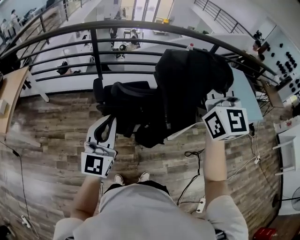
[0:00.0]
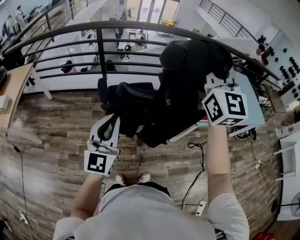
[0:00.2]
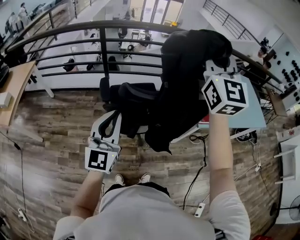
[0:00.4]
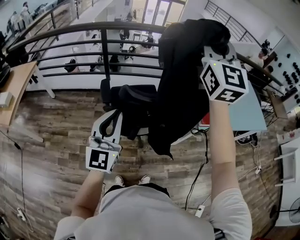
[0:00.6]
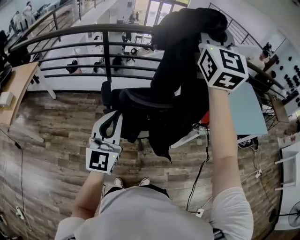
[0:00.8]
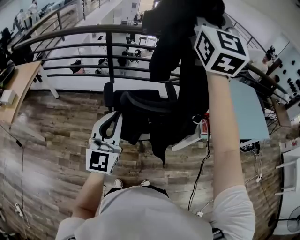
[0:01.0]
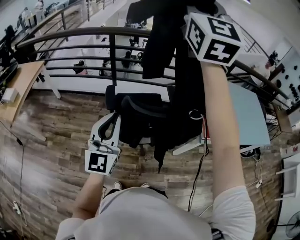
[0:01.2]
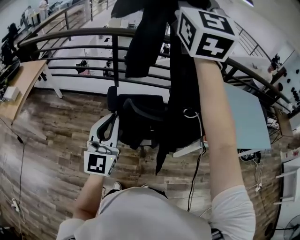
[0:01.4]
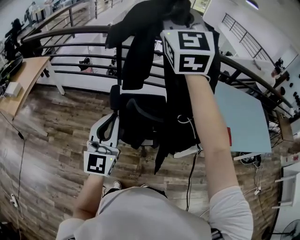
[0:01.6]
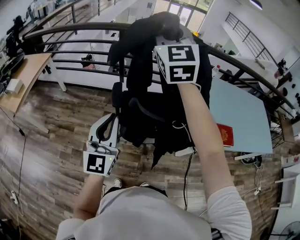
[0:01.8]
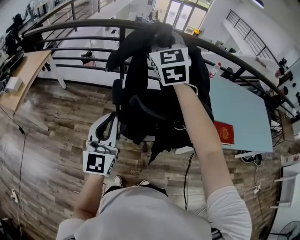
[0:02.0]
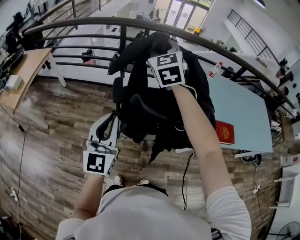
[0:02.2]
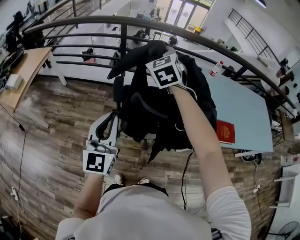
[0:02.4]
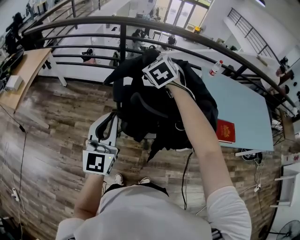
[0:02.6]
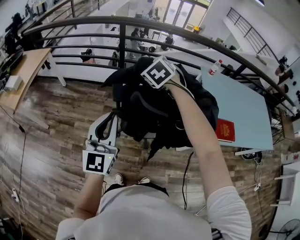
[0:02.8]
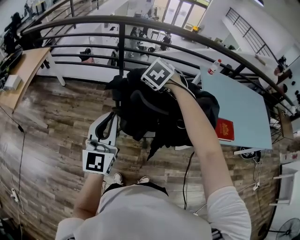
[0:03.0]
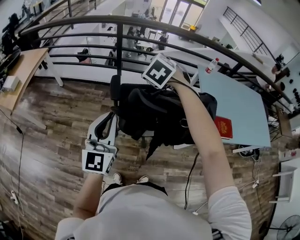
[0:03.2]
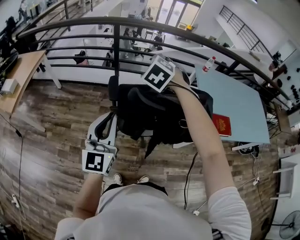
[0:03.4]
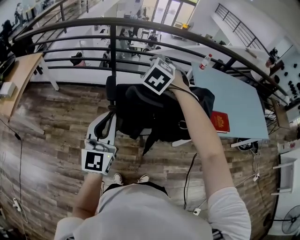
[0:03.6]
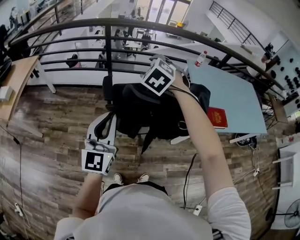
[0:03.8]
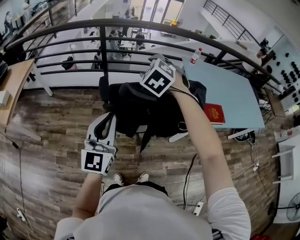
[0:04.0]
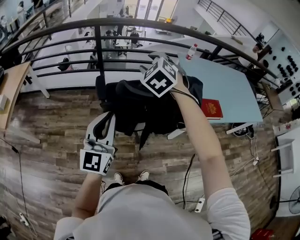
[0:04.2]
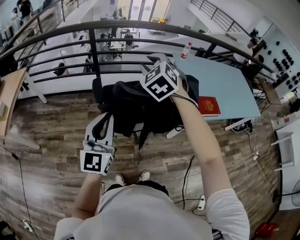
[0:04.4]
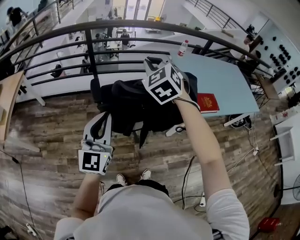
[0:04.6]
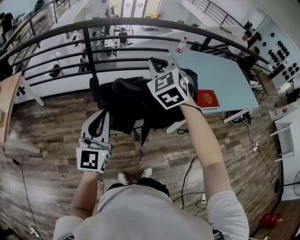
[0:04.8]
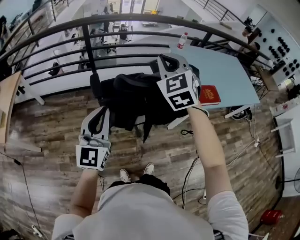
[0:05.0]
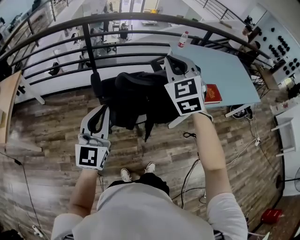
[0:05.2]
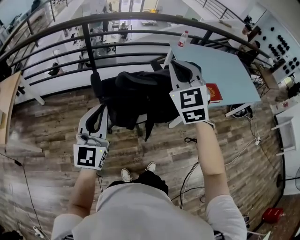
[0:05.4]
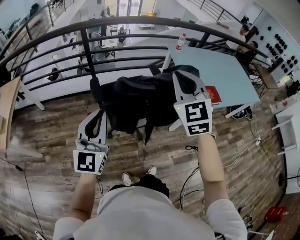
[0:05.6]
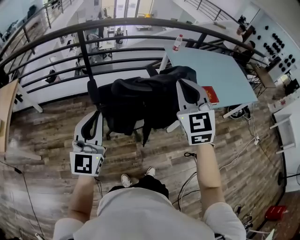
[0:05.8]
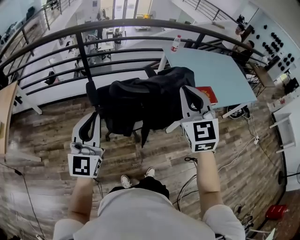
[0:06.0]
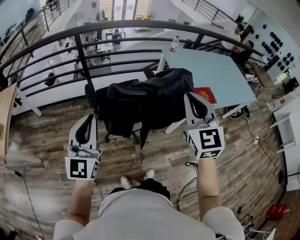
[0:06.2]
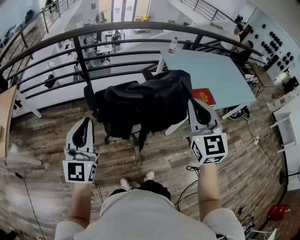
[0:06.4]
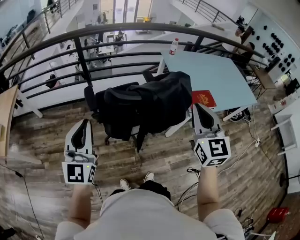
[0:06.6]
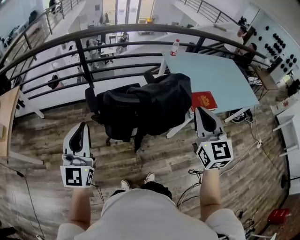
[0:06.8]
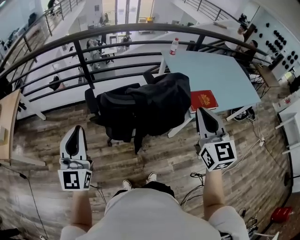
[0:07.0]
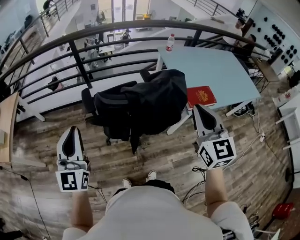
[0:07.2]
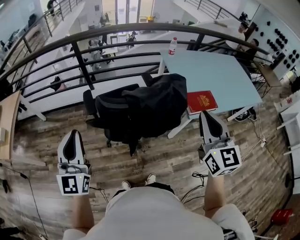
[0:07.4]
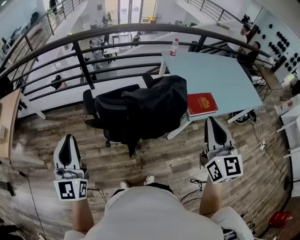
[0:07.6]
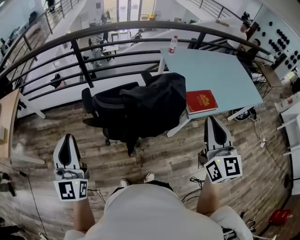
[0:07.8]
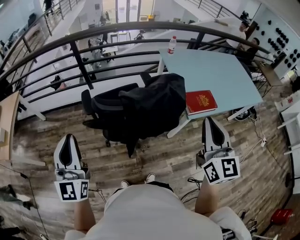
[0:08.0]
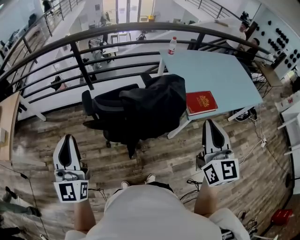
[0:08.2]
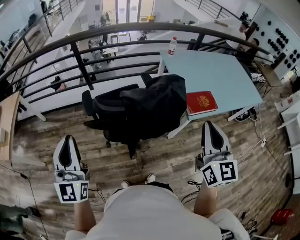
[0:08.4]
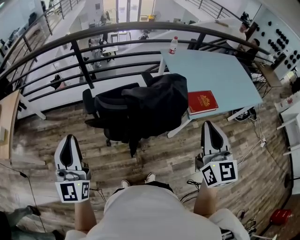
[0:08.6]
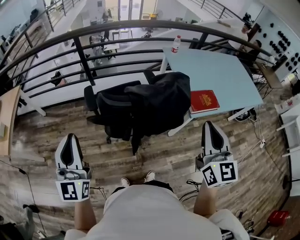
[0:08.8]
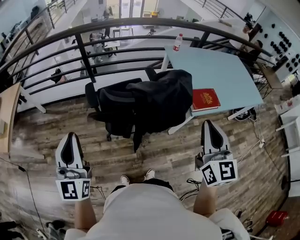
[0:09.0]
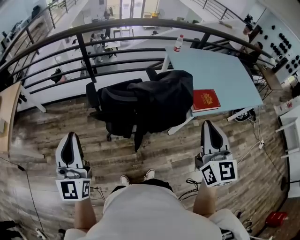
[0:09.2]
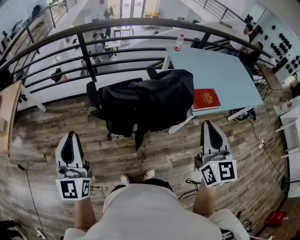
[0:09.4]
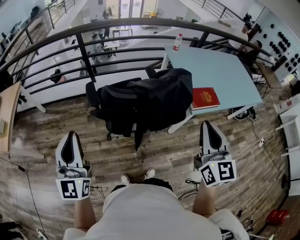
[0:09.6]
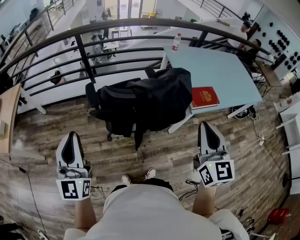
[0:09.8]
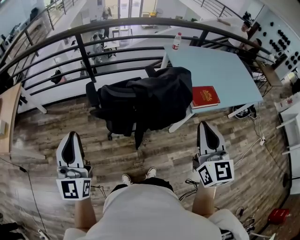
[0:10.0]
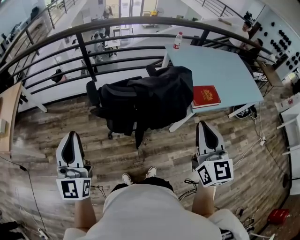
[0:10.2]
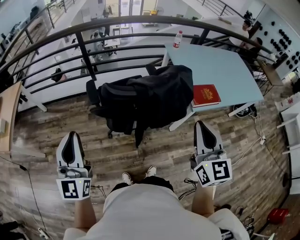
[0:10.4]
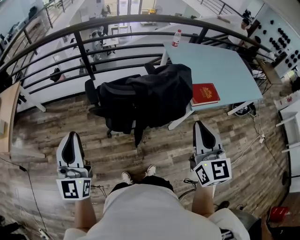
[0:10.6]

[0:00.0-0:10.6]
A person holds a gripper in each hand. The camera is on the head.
0:00.0 to 0:01.6: The left gripper moves some 5 cm. The right gripper moves to the left, forward and upward, roughly 30 cm.
0:01.6 to 0:03.0: The right gripper travels downward by about 35 cm, angles its fingers downward, by about 70 degrees, and opens up.
0:03.0 to 0:04.6: The right gripper heads upward, backward and to the right, covering some 15 cm, swivels approximately 30 degrees, and closes up.
0:04.6 to 0:06.0: The right gripper travels to the right and backward by about 20 cm, and turns by about 30 degrees.
0:06.0 to 0:07.6: The right gripper moves to the right, approximately 15 cm, and turns by about 20 degrees.
0:07.6 to 0:09.0: There are only small adjustments of the grippers.
0:09.0 to 0:10.6: The grippers make only small movements.

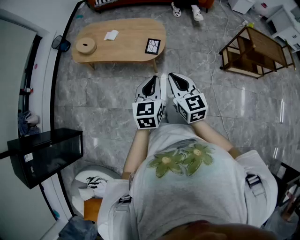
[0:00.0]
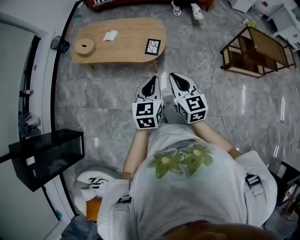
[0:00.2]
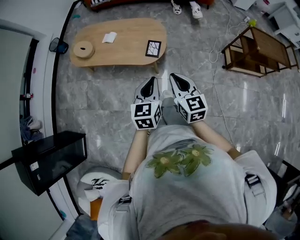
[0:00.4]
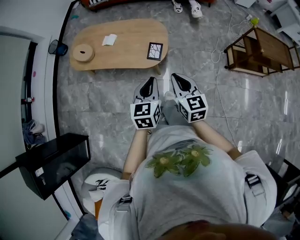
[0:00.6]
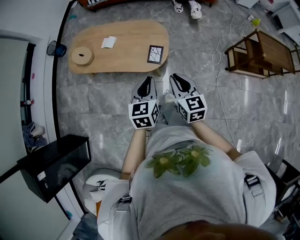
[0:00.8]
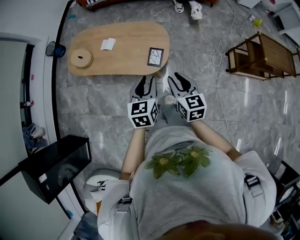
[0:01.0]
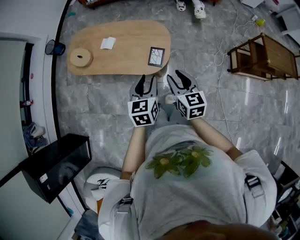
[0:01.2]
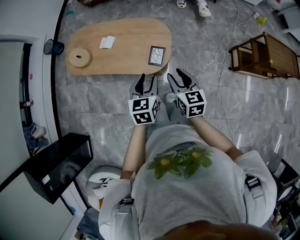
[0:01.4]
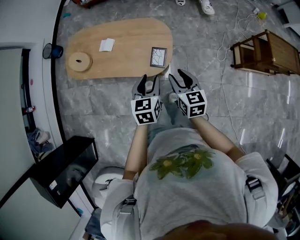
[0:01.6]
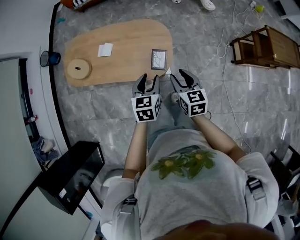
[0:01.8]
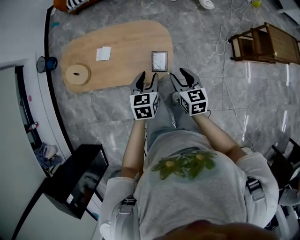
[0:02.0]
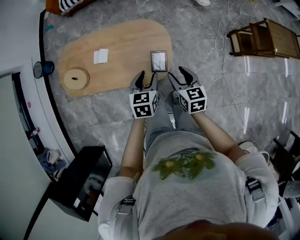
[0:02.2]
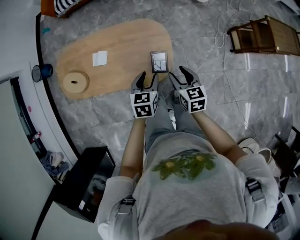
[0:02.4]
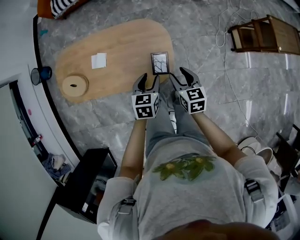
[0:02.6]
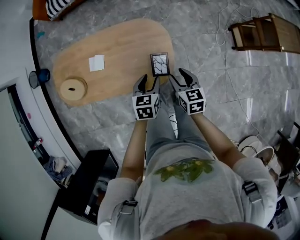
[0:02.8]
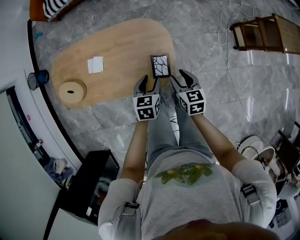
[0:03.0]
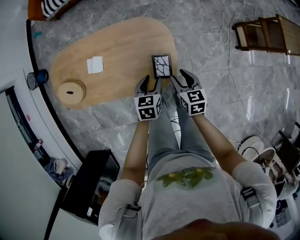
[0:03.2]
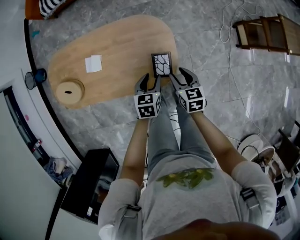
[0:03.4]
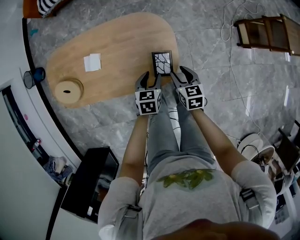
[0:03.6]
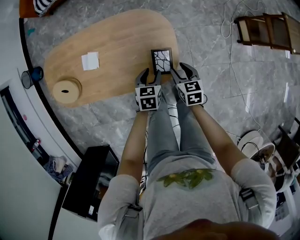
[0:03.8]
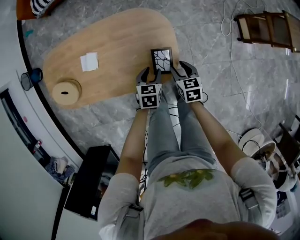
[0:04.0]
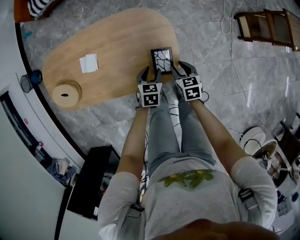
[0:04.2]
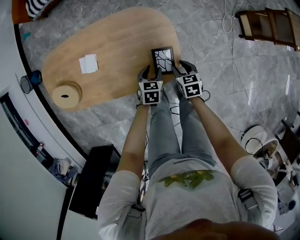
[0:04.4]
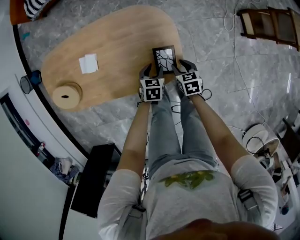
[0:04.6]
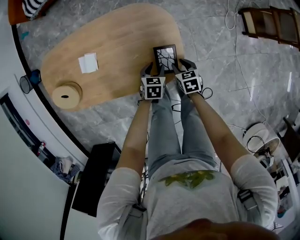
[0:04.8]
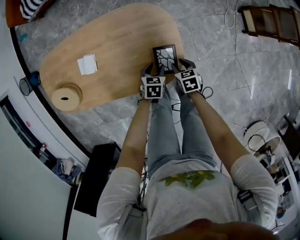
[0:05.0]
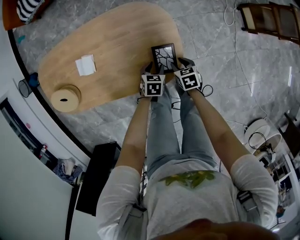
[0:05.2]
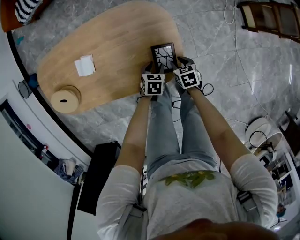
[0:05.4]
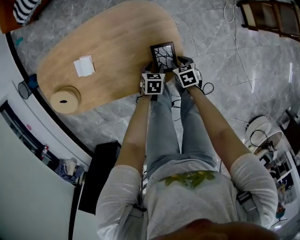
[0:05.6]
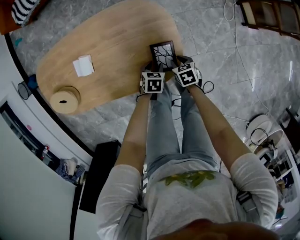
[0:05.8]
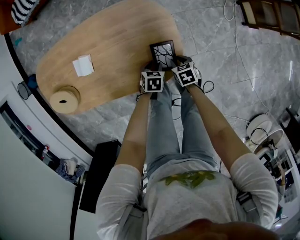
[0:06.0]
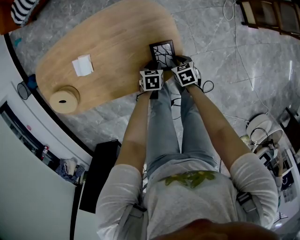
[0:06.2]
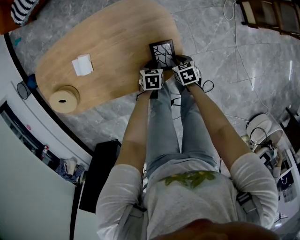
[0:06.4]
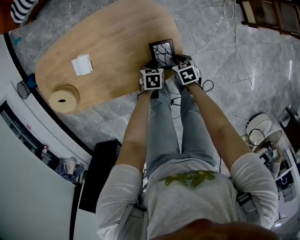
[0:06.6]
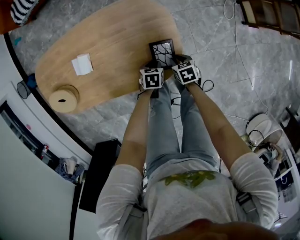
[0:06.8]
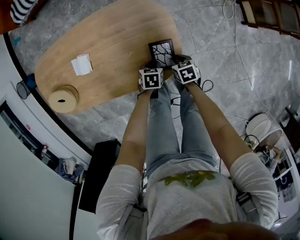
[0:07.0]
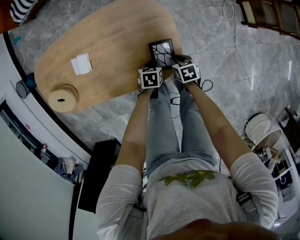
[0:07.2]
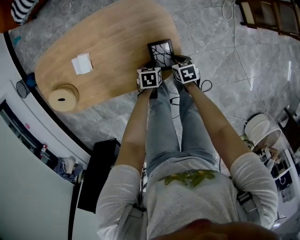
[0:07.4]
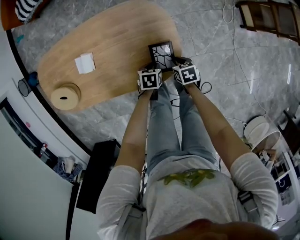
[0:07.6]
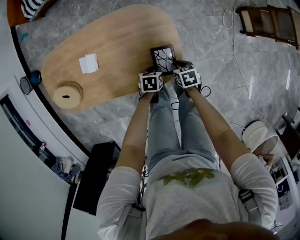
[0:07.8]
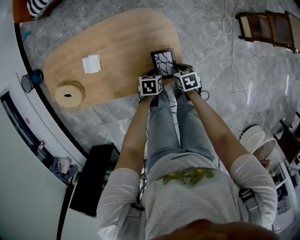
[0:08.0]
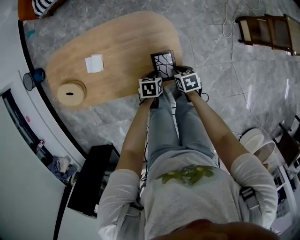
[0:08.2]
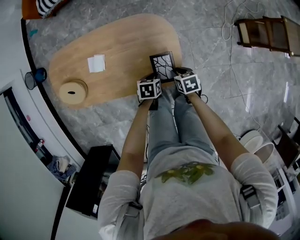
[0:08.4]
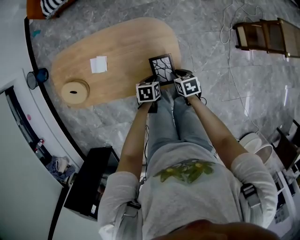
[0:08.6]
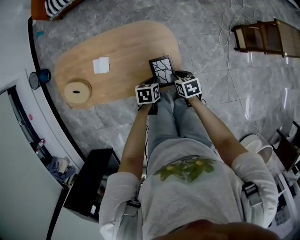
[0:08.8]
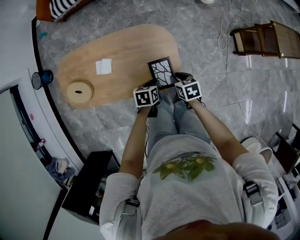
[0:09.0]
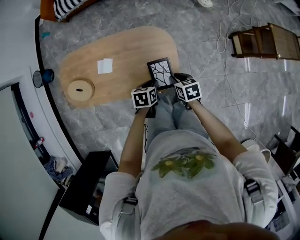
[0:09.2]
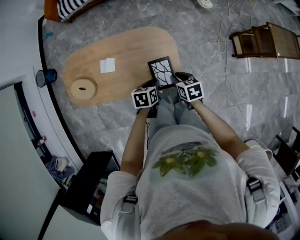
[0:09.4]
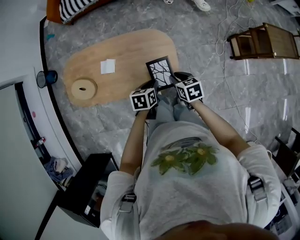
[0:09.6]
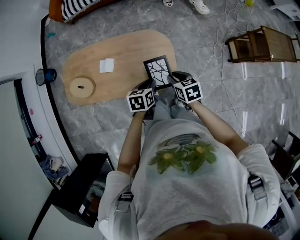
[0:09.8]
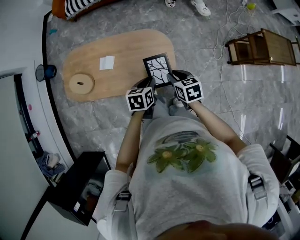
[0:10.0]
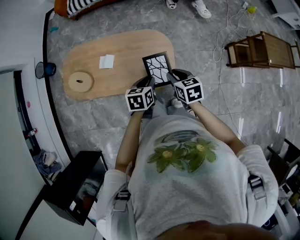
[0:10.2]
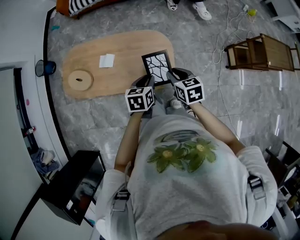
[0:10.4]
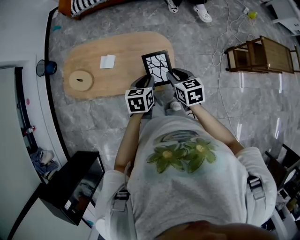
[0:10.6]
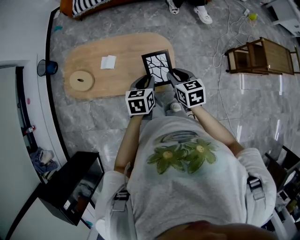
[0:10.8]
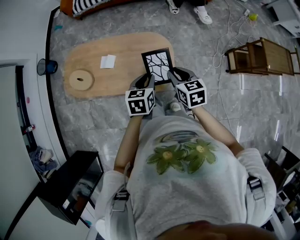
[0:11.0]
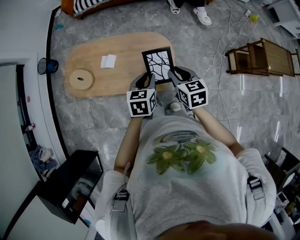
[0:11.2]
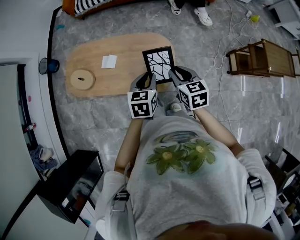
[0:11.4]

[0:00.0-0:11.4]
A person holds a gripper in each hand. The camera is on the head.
0:00.0 to 0:01.4: The right gripper is displaced forward and downward by about 25 cm, and opens up. The left gripper heads forward, covering roughly 25 cm, and opens up.
0:01.4 to 0:02.8: Both grippers travel together downward and forward, approximately 20 cm. The left gripper rotates approximately 20 degrees.
0:02.8 to 0:04.2: The grippers both shift downward by roughly 15 cm.
0:04.2 to 0:05.6: Both grippers move downward, some 10 cm.
0:05.6 to 0:07.2: The left gripper closes.
0:07.2 to 0:08.6: The grippers both shift upward by roughly 15 cm.
0:08.6 to 0:10.0: Both grippers travel together upward, some 20 cm.
0:10.0 to 0:11.4: The two grippers go approximately 10 cm upward.

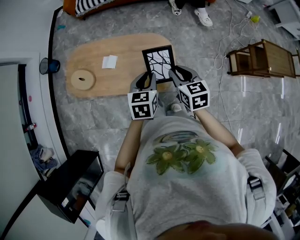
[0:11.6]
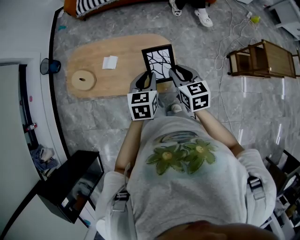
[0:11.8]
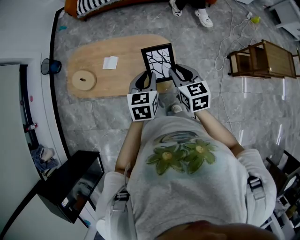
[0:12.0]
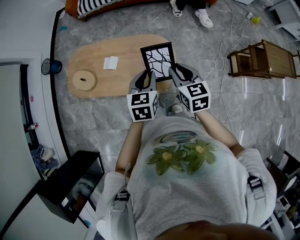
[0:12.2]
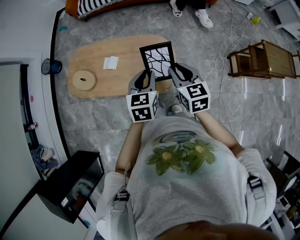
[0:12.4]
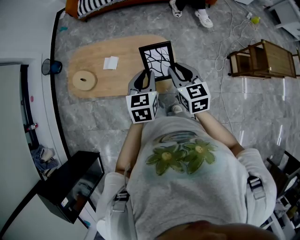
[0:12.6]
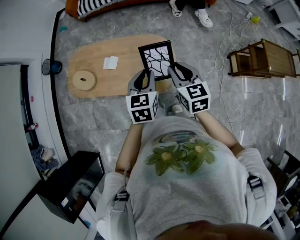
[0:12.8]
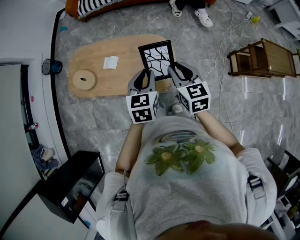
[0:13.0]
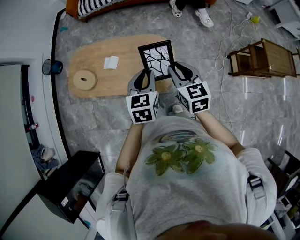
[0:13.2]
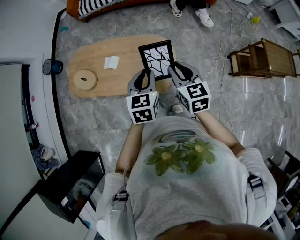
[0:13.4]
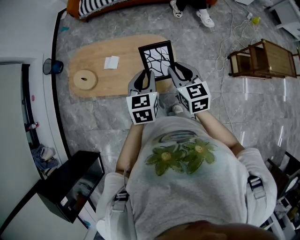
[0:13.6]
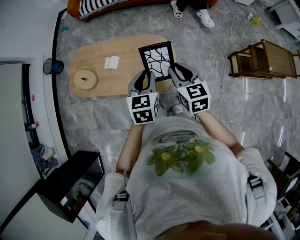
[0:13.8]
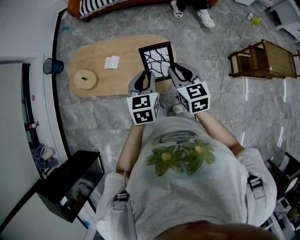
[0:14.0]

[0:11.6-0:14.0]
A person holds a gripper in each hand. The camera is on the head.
0:11.6 to 0:12.8: The grippers stay close to where they were, moving slightly.
0:12.8 to 0:14.0: Both grippers stay put.
